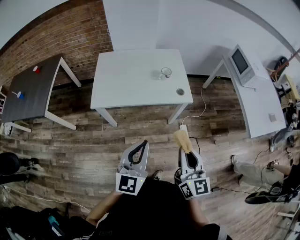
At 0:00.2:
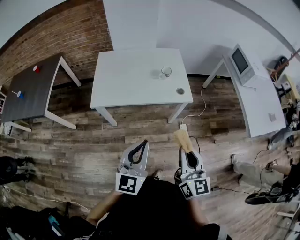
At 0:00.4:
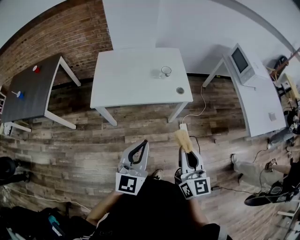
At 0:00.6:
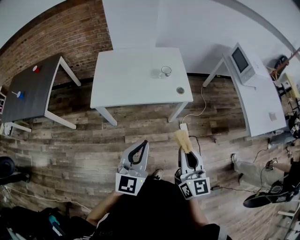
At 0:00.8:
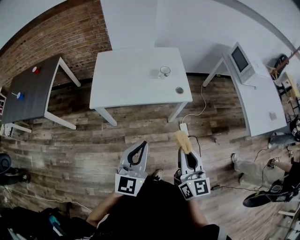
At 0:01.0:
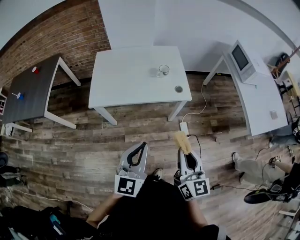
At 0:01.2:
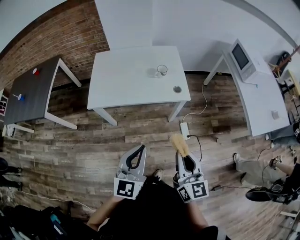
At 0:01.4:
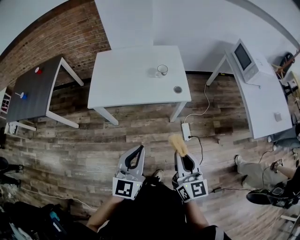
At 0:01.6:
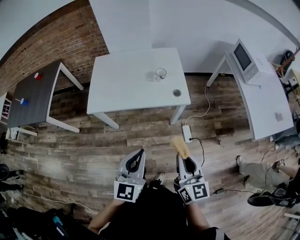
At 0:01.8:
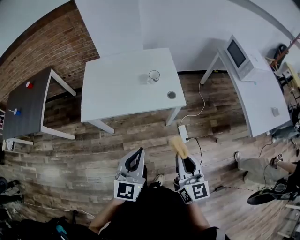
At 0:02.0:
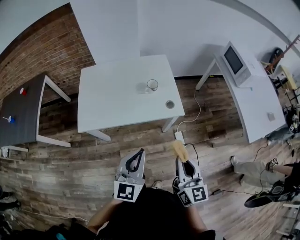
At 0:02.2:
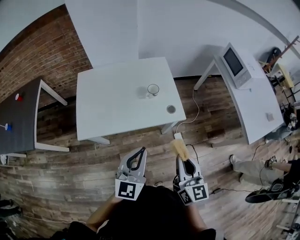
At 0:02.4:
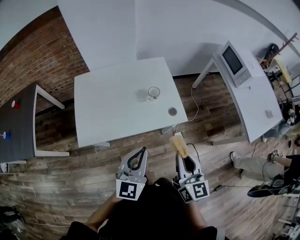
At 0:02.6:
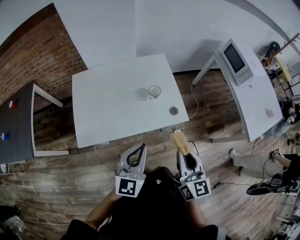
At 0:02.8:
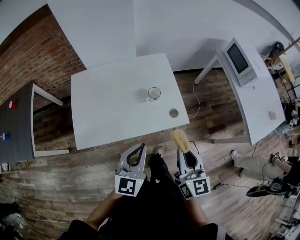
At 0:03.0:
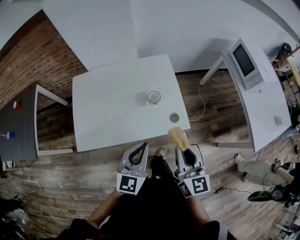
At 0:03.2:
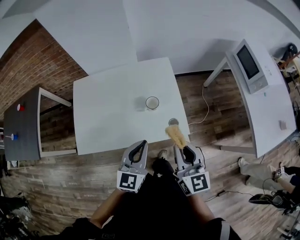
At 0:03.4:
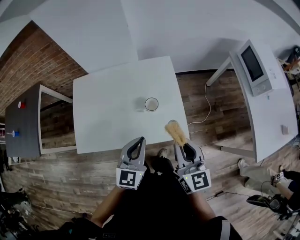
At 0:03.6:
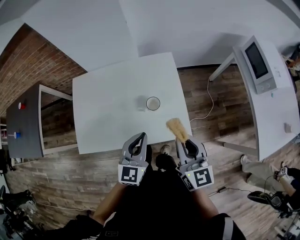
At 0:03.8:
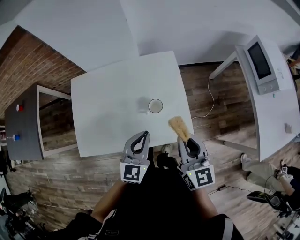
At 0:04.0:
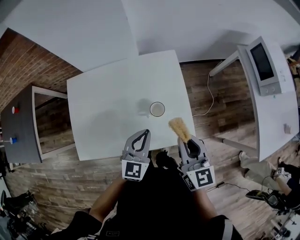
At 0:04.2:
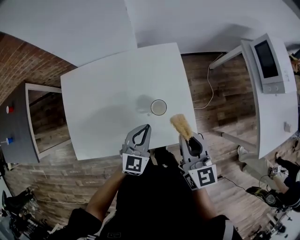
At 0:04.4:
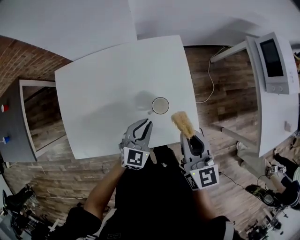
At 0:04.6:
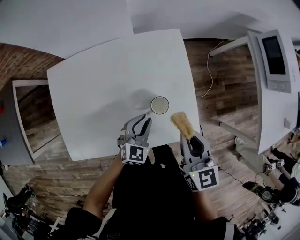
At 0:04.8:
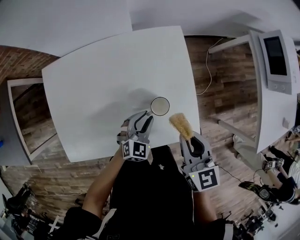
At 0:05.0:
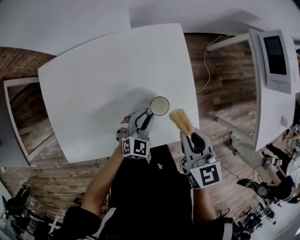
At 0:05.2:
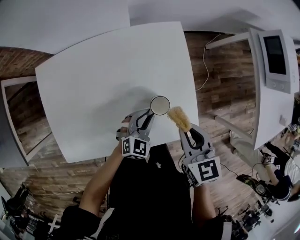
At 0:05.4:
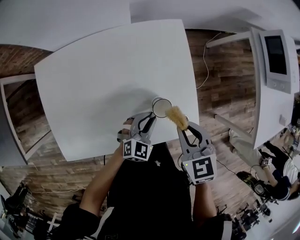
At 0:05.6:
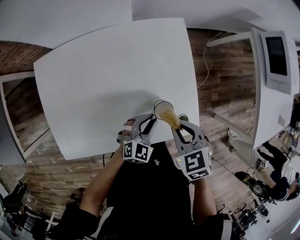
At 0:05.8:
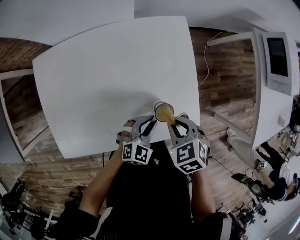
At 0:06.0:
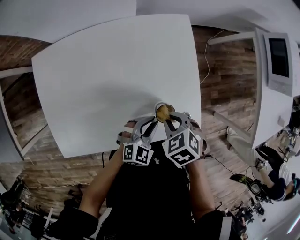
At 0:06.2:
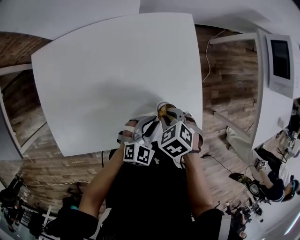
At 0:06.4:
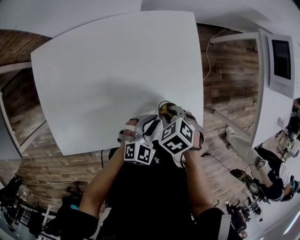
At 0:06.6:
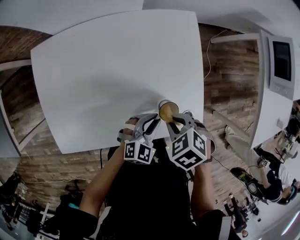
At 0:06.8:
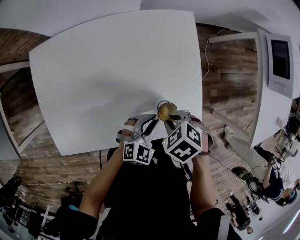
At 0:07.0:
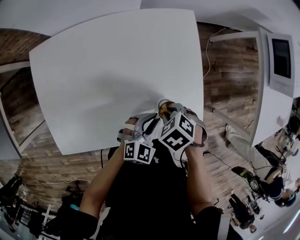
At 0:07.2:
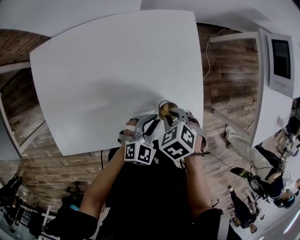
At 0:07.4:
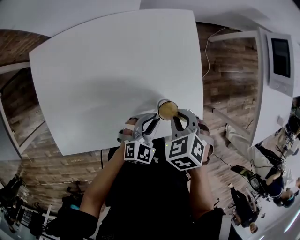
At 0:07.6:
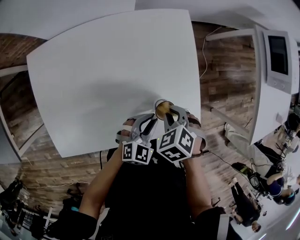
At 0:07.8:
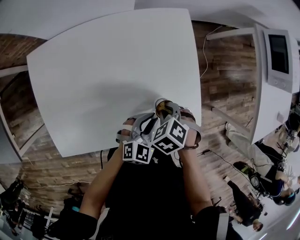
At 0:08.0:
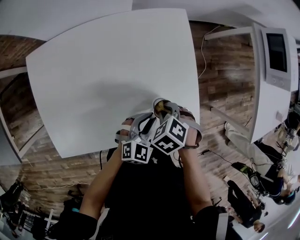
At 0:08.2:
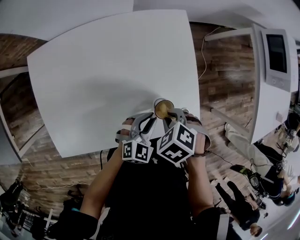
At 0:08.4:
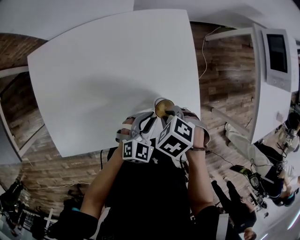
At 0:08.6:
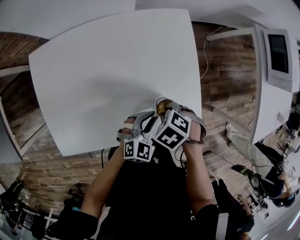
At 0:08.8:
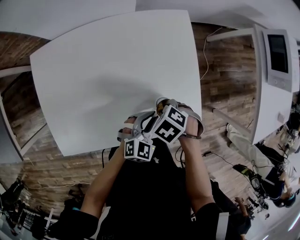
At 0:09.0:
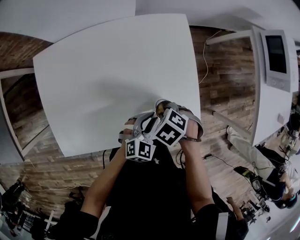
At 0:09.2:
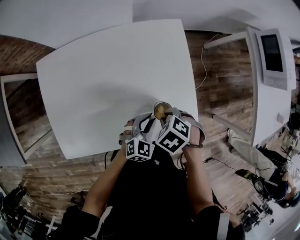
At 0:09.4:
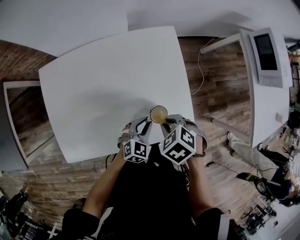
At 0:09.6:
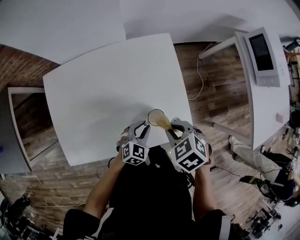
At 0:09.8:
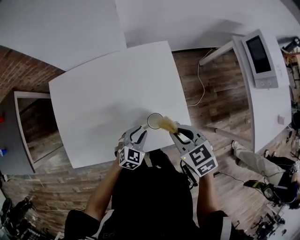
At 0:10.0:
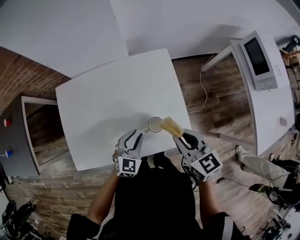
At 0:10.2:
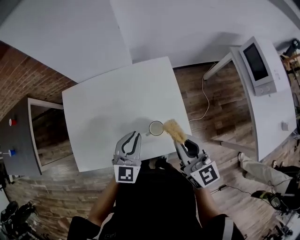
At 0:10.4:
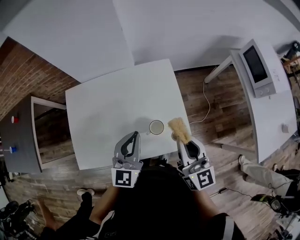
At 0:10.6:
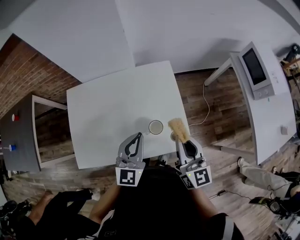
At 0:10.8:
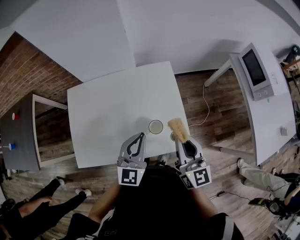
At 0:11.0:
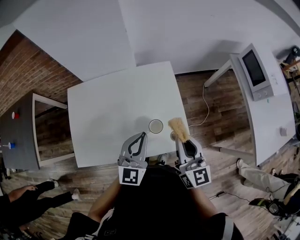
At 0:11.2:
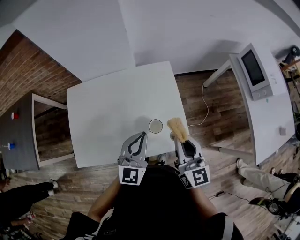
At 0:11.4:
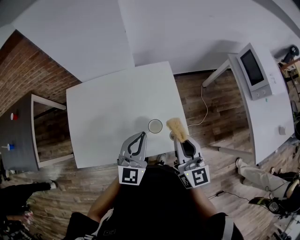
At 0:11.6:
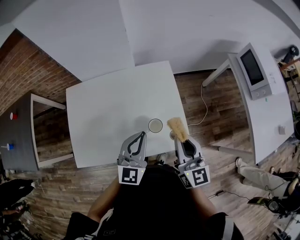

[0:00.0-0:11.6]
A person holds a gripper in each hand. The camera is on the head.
0:00.0 to 0:01.4: The grippers make only small movements.
0:01.4 to 0:02.8: The two grippers go roughly 25 cm forward.
0:02.8 to 0:04.4: The left gripper moves forward and downward, about 30 cm, and changes its angle by approximately 20 degrees. Meanwhile the right gripper travels forward by some 25 cm.
0:04.4 to 0:05.8: The left gripper is displaced downward by some 10 cm, while the right gripper shifts approximately 15 cm downward, and tilts its fingers some 50 degrees downward.
0:05.8 to 0:07.2: The right gripper goes up and down, about 5 cm each way, reversing 2 times.
0:07.2 to 0:08.8: The right gripper swings up and down, roughly 5 cm each way, with 3 reversals.
0:08.8 to 0:10.2: The grippers both shift upward by some 25 cm. The left gripper changes its angle by approximately 30 degrees, while the right gripper points its fingers approximately 80 degrees further upward.
0:10.2 to 0:11.6: The left gripper moves some 5 cm.

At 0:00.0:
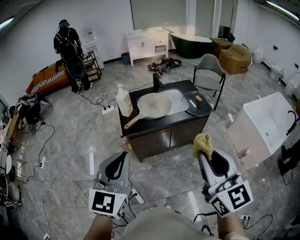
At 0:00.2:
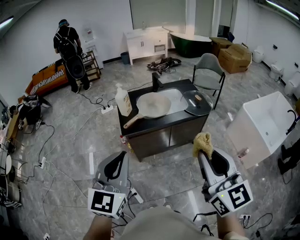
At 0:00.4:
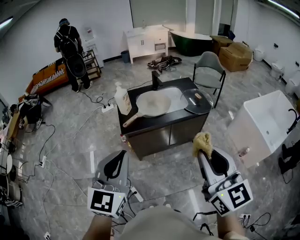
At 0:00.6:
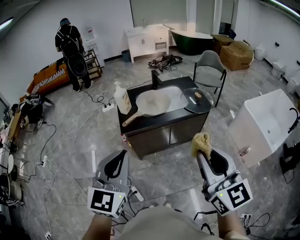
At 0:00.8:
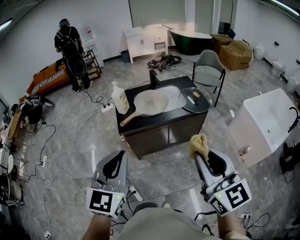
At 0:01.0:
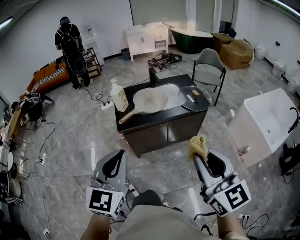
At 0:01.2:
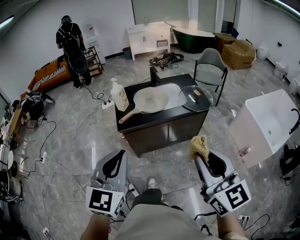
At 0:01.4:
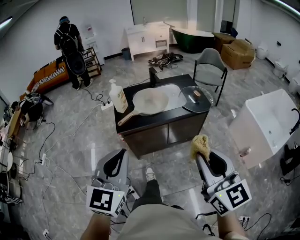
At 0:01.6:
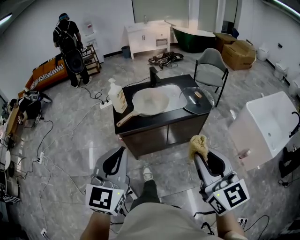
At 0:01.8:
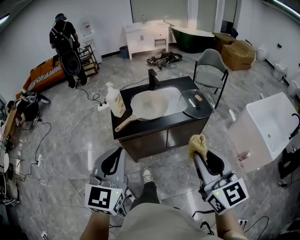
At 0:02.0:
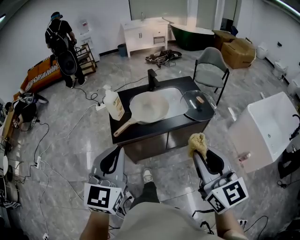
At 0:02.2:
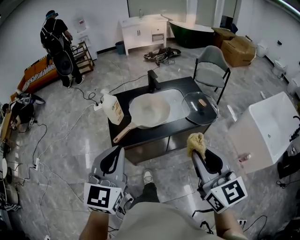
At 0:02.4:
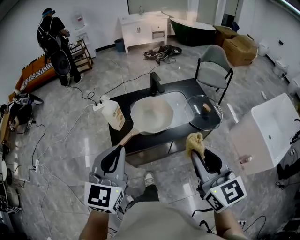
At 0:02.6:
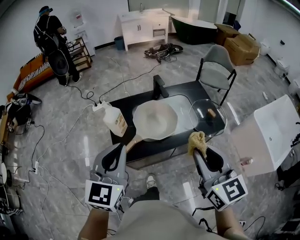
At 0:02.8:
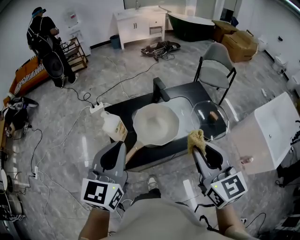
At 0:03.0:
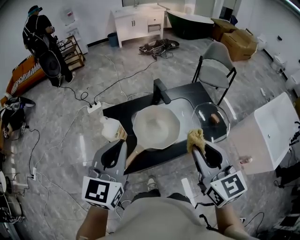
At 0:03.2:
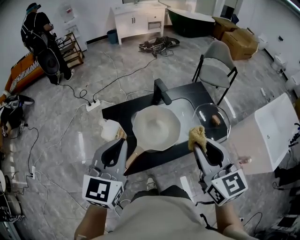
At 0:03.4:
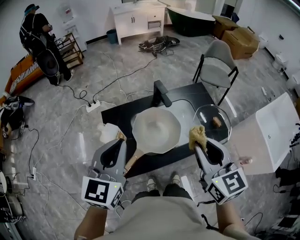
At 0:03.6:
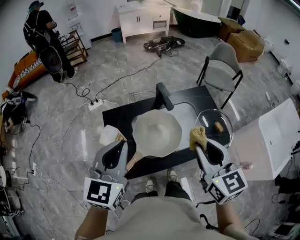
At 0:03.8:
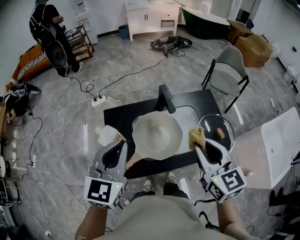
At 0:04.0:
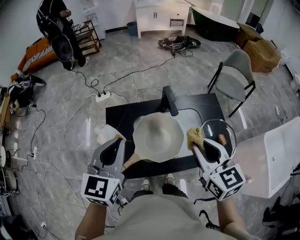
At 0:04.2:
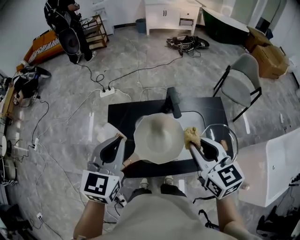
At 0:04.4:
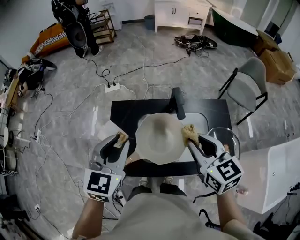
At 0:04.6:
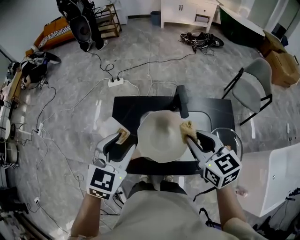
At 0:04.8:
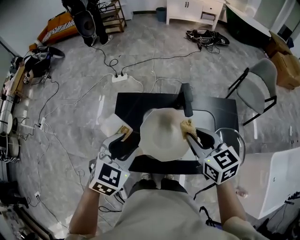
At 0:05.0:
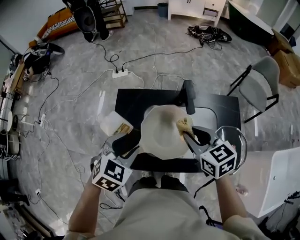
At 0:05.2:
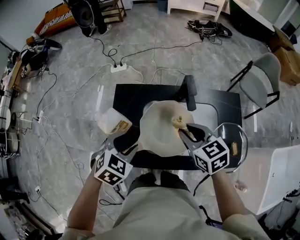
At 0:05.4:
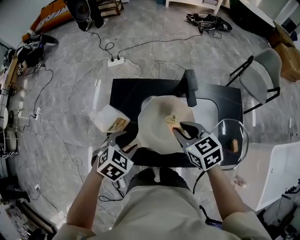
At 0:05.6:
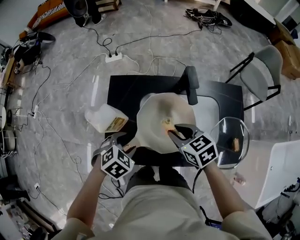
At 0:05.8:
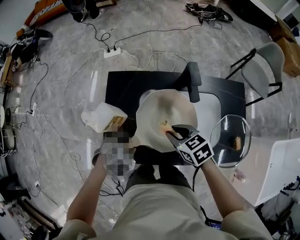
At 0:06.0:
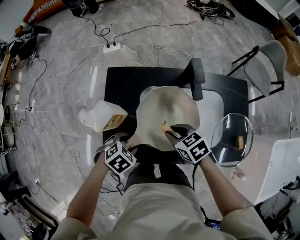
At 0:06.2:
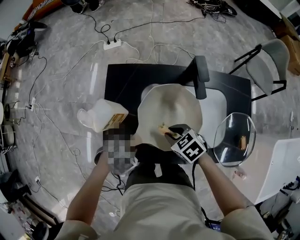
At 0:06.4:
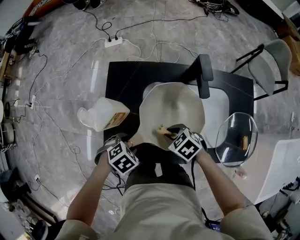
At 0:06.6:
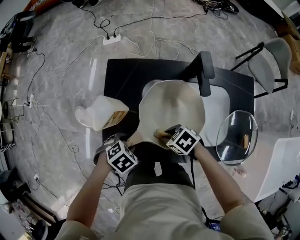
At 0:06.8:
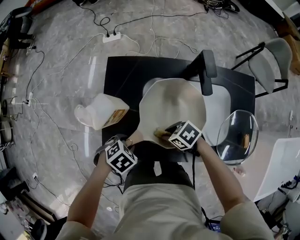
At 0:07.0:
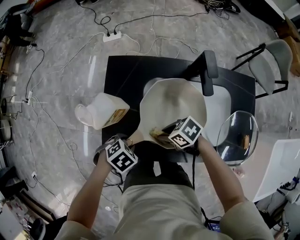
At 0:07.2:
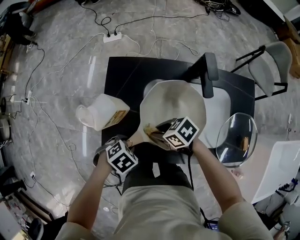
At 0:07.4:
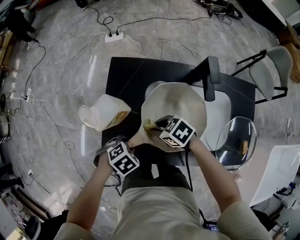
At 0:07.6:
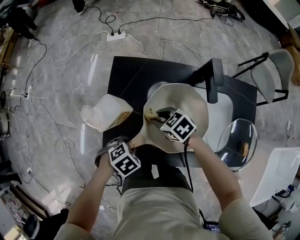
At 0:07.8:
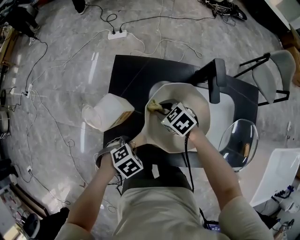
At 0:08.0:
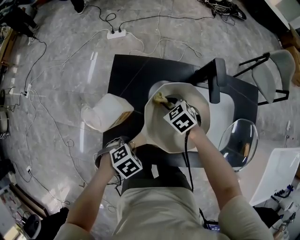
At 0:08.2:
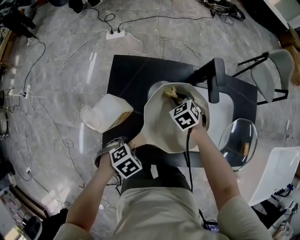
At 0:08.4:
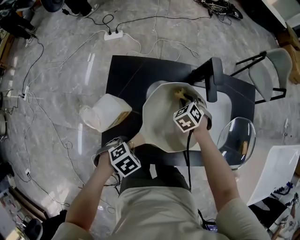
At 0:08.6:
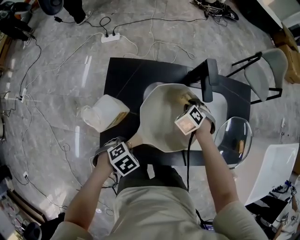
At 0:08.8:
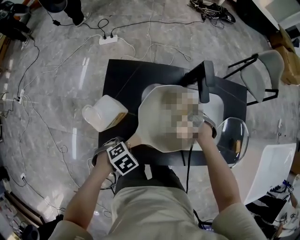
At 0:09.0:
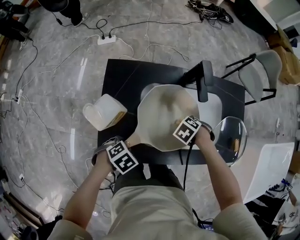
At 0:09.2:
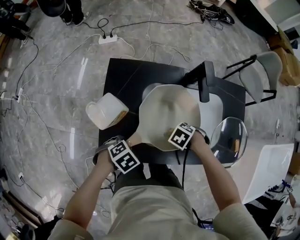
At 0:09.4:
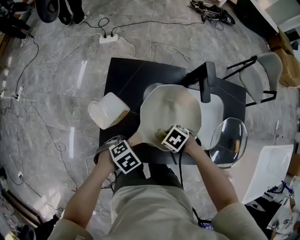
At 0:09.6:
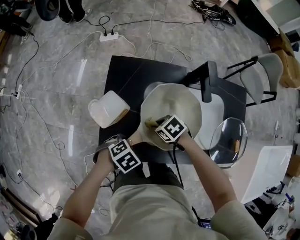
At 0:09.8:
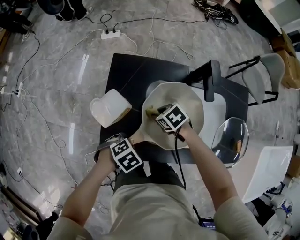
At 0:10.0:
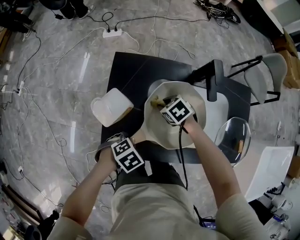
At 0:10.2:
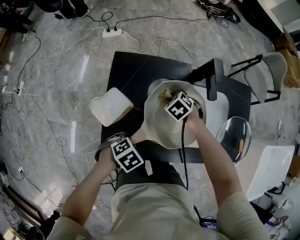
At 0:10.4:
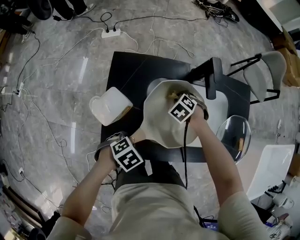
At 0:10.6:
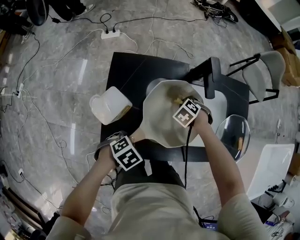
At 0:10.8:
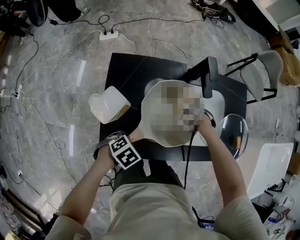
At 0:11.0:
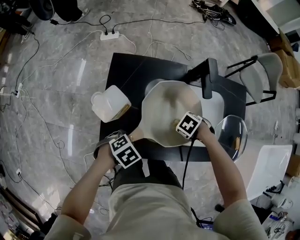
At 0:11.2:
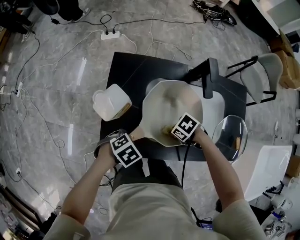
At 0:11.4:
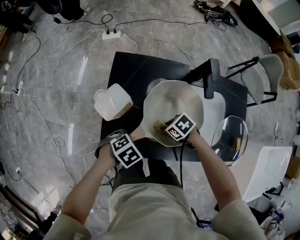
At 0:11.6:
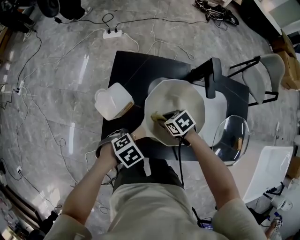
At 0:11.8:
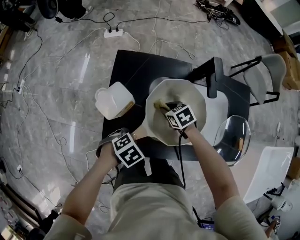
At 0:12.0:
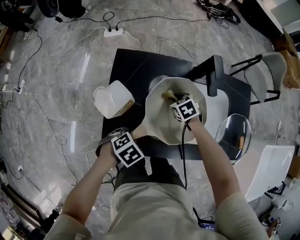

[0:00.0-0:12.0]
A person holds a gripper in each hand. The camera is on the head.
0:00.0 to 0:01.6: The right gripper shifts roughly 5 cm downward; the left gripper moves about 5 cm.
0:01.6 to 0:03.0: The grippers both shift forward by some 35 cm.
0:03.0 to 0:04.4: The right gripper is displaced forward and downward by approximately 20 cm, and rotates roughly 30 degrees; the left gripper heads forward and downward, covering approximately 10 cm.
0:04.4 to 0:06.0: The two grippers go about 30 cm downward. The right gripper turns by roughly 40 degrees; the left gripper angles its fingers downward, by approximately 50 degrees, and opens up.
0:06.0 to 0:07.6: The right gripper moves about 15 cm. The left gripper shifts by approximately 5 cm, and closes.
0:07.6 to 0:09.0: The right gripper moves about 20 cm, and tips its fingers downward by roughly 40 degrees.
0:09.0 to 0:10.4: The right gripper ends up about 15 cm from where it was.
0:10.4 to 0:12.0: The right gripper rotates about 30 degrees.
